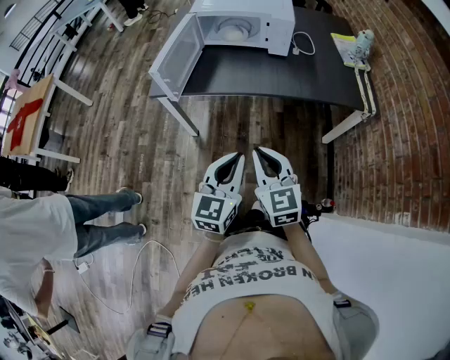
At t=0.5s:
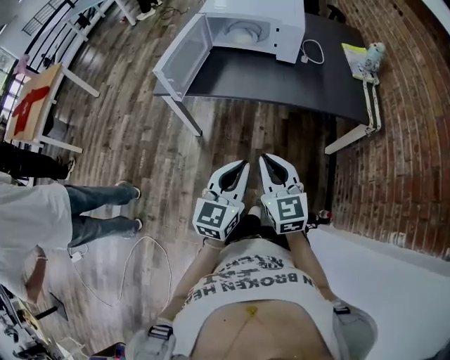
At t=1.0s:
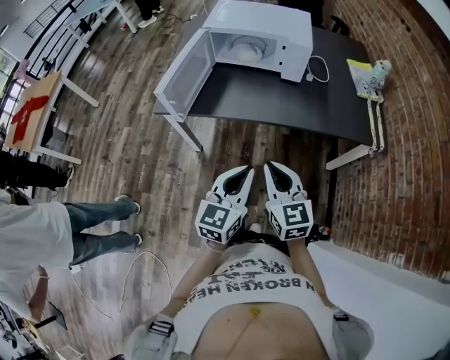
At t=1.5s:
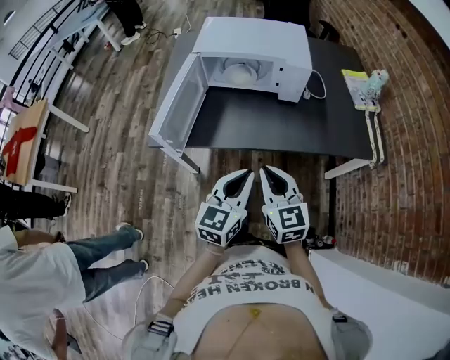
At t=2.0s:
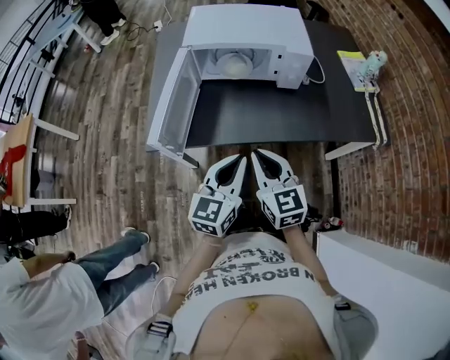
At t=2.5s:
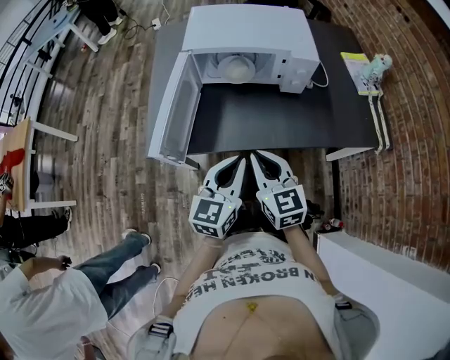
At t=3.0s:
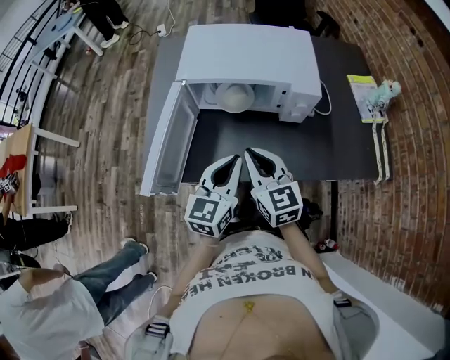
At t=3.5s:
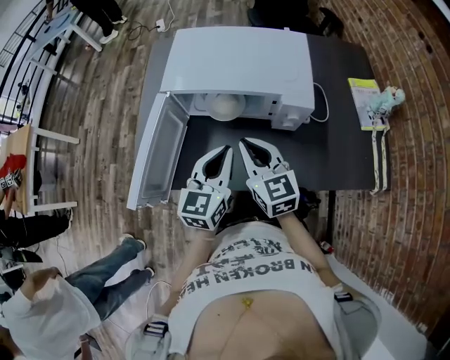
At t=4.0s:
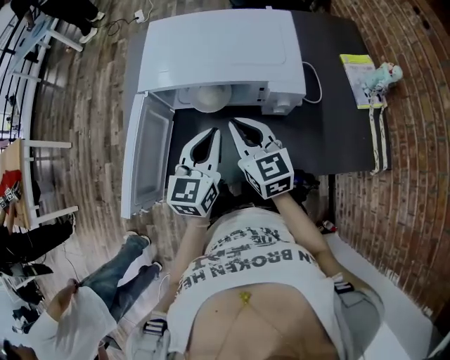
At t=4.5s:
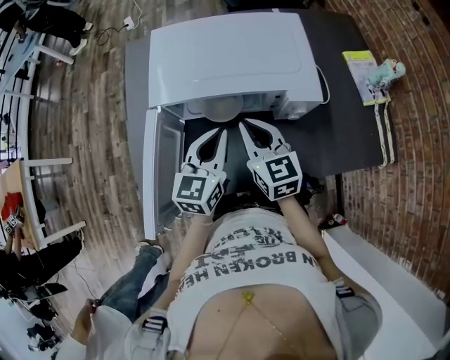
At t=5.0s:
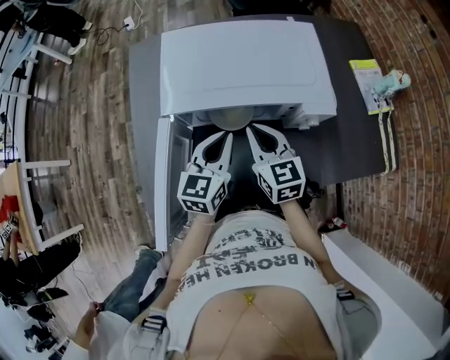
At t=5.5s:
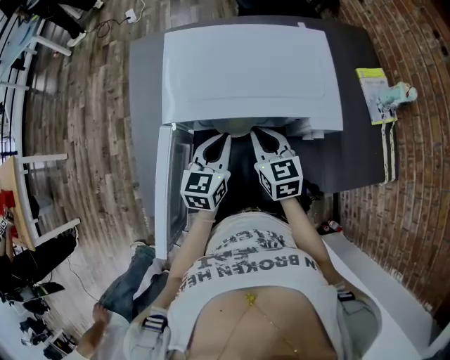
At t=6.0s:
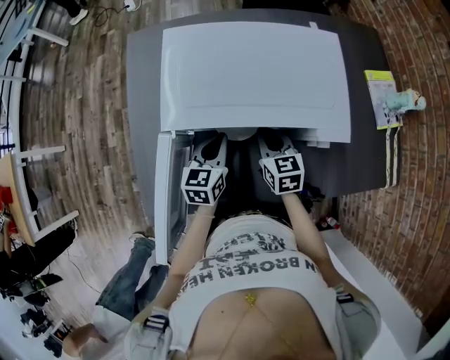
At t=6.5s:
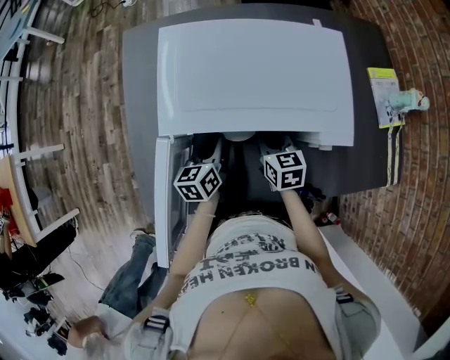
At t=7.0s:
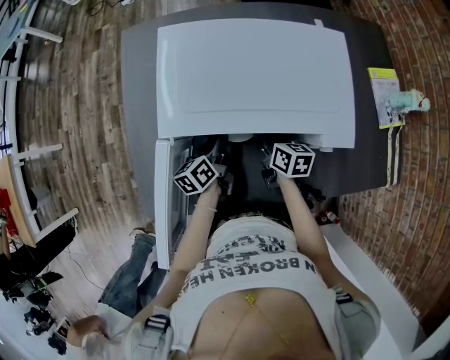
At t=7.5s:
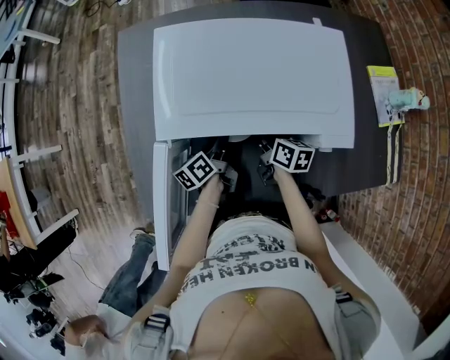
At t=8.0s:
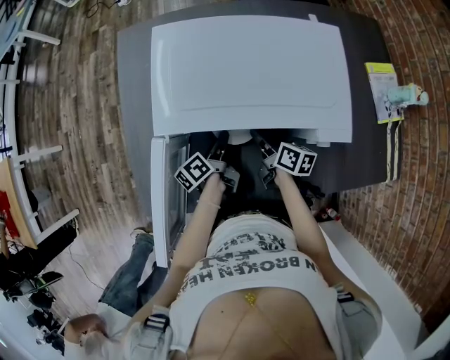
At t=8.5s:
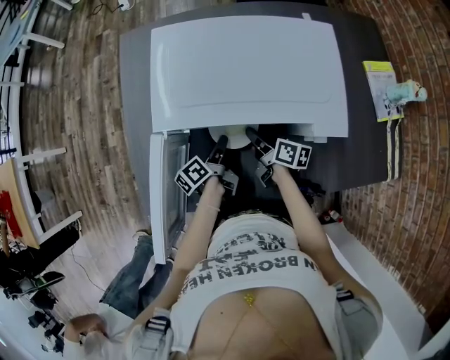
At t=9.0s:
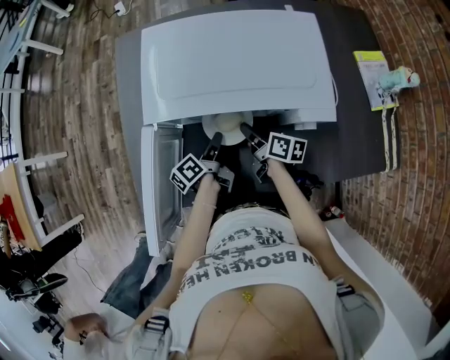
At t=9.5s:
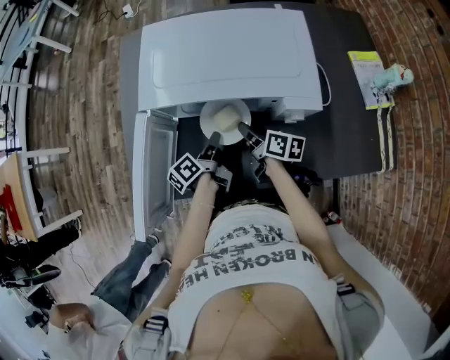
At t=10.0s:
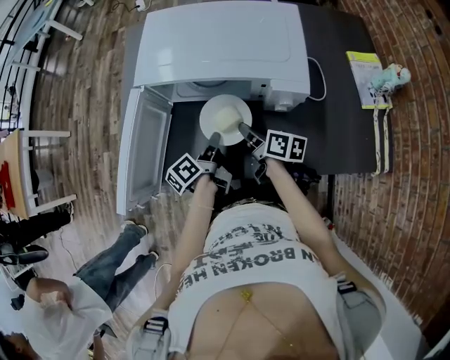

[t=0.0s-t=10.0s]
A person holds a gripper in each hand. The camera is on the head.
t=0.0s to t=2.0s: The grippers both shift forward by about 25 cm.
t=2.0s to t=4.0s: The two grippers go roughly 30 cm forward.
t=4.0s to t=6.0s: The right gripper shifts some 20 cm downward and forward, and rotates roughly 20 degrees. Meanwhile the left gripper shifts approximately 20 cm downward, forward and to the left.
t=6.0s to t=8.0s: Both grippers travel together downward, approximately 5 cm. The left gripper rotates around the line of its fingers by some 60 degrees, counterclockwise from behind, and opens, then closes again. Meanwhile the right gripper twists some 40 degrees clockwise, seen from behind, and opens up.
t=8.0s to t=10.0s: The grippers both shift backward and upward by some 15 cm.

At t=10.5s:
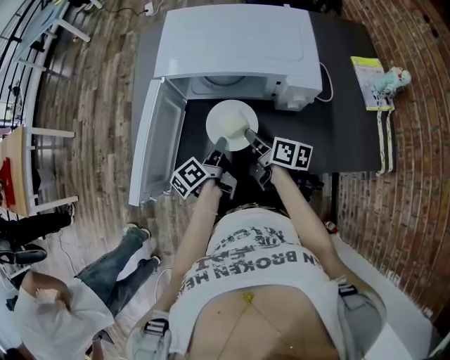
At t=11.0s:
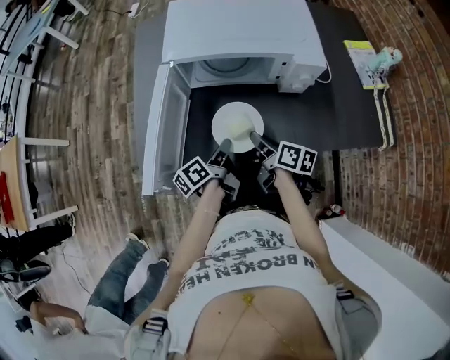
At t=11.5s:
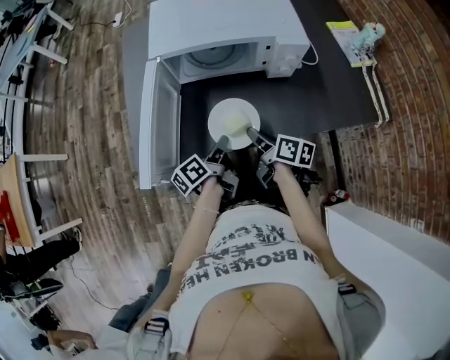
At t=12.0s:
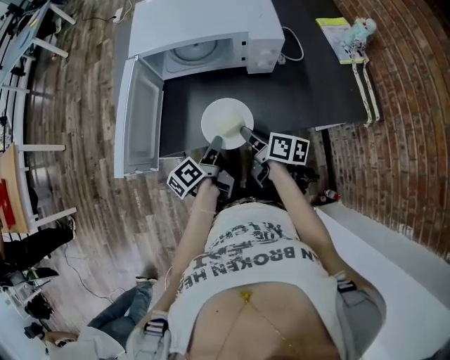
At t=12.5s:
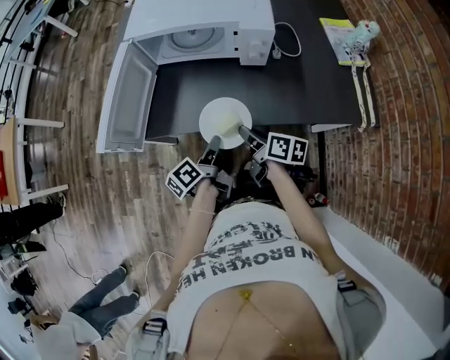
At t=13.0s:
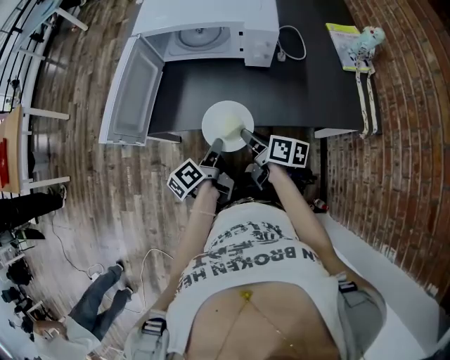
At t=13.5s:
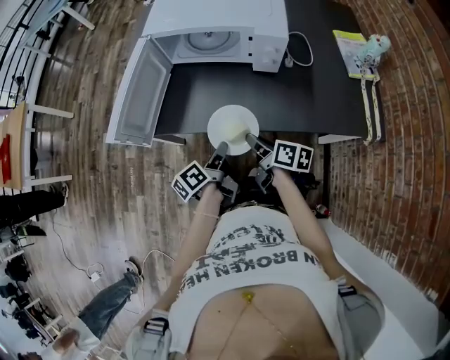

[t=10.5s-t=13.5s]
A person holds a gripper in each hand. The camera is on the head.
t=10.5s to t=12.0s: The two grippers go about 15 cm backward.
t=12.0s to t=13.5s: The grippers both shift backward by roughly 5 cm.

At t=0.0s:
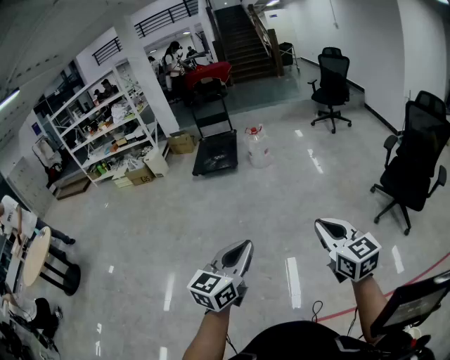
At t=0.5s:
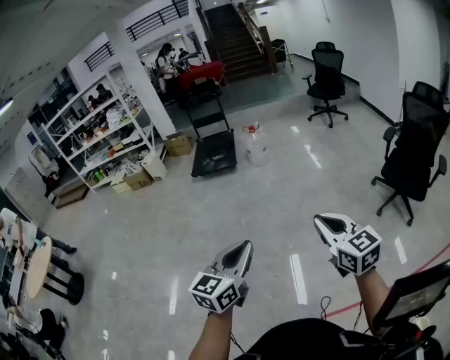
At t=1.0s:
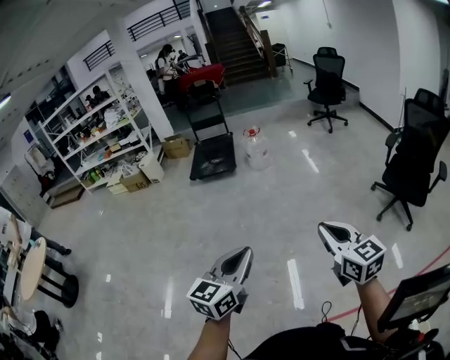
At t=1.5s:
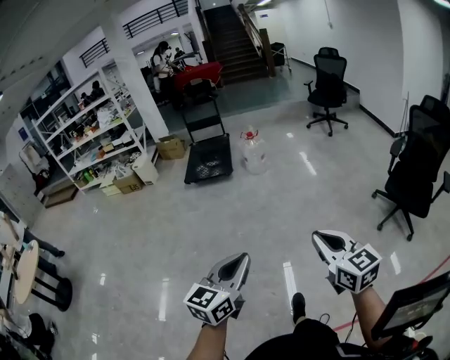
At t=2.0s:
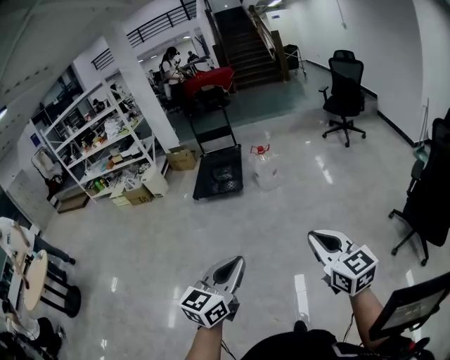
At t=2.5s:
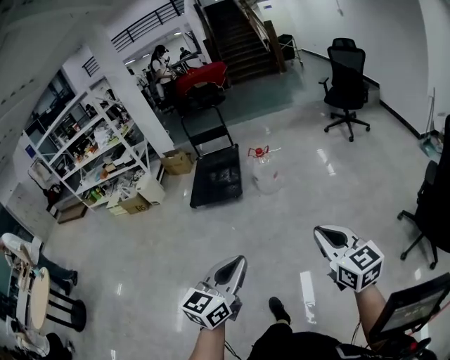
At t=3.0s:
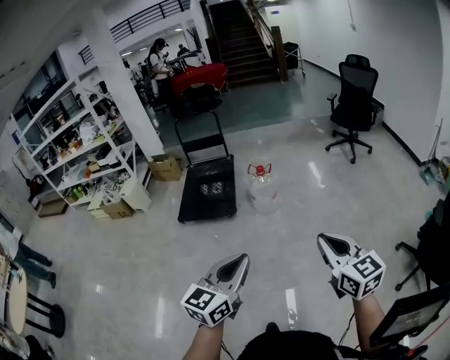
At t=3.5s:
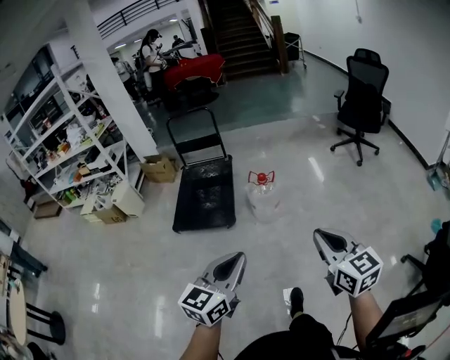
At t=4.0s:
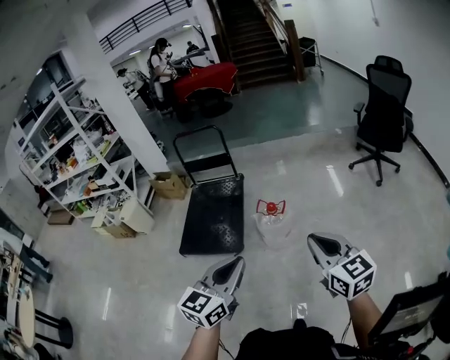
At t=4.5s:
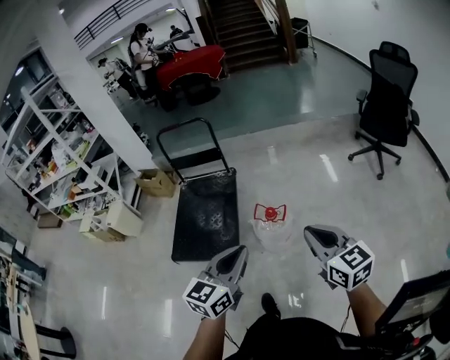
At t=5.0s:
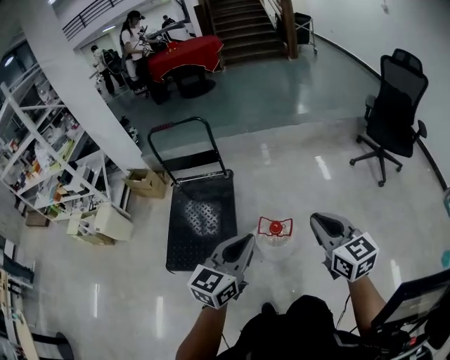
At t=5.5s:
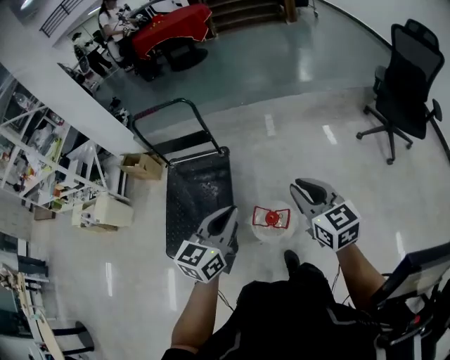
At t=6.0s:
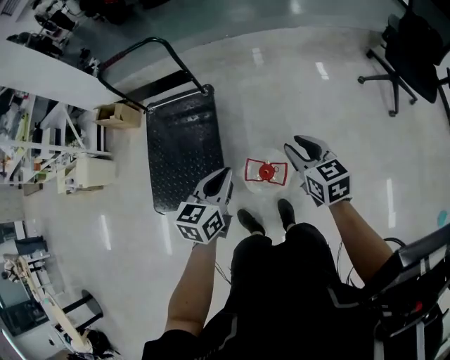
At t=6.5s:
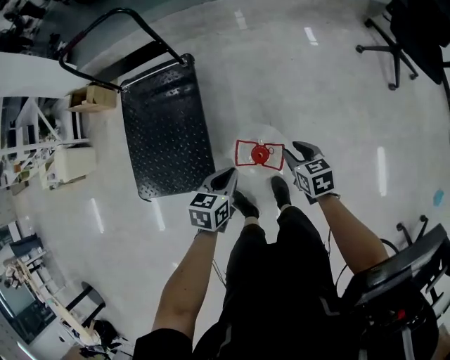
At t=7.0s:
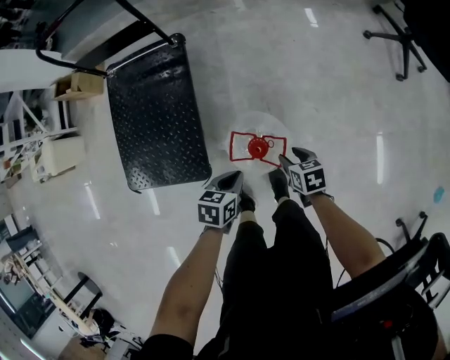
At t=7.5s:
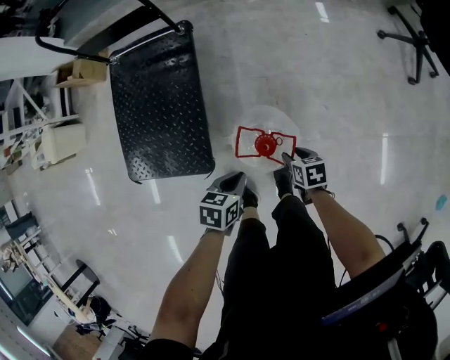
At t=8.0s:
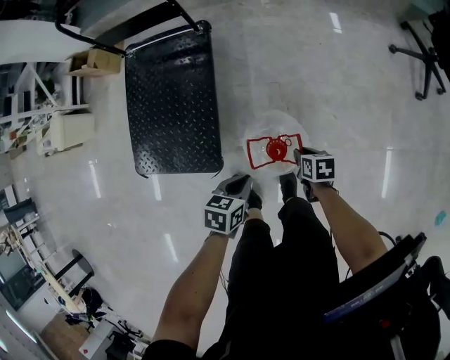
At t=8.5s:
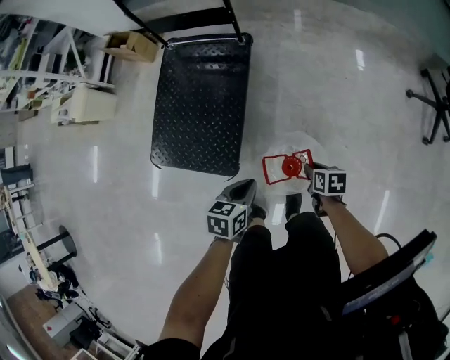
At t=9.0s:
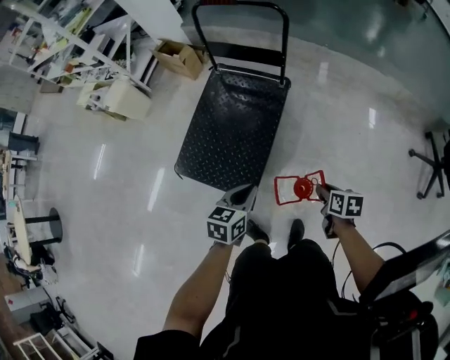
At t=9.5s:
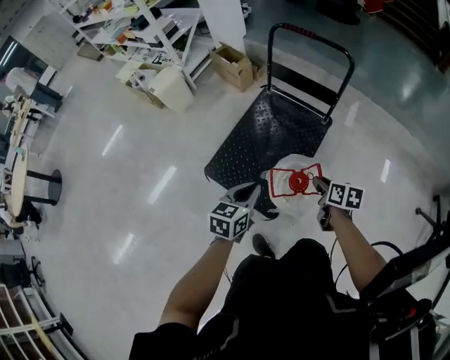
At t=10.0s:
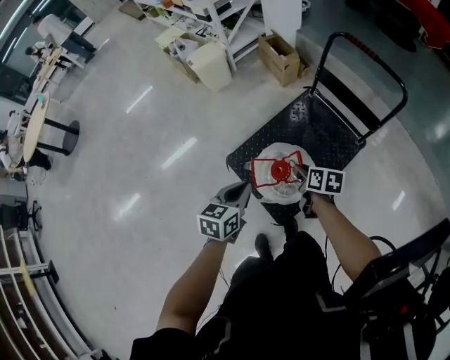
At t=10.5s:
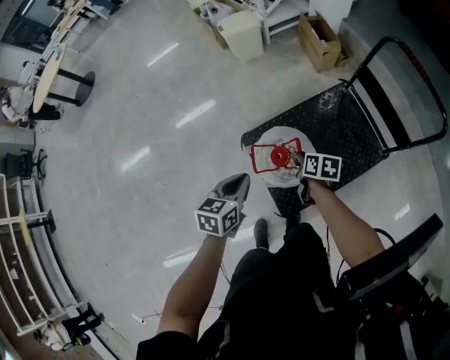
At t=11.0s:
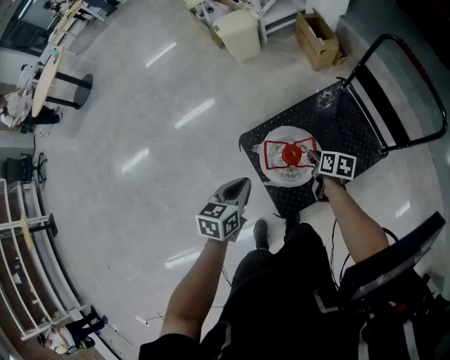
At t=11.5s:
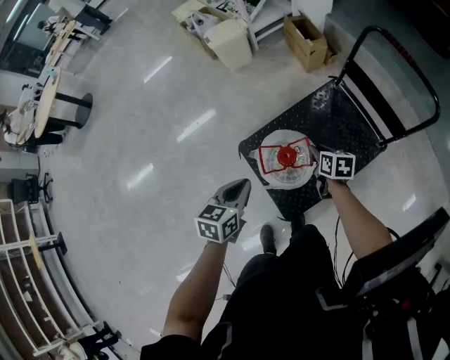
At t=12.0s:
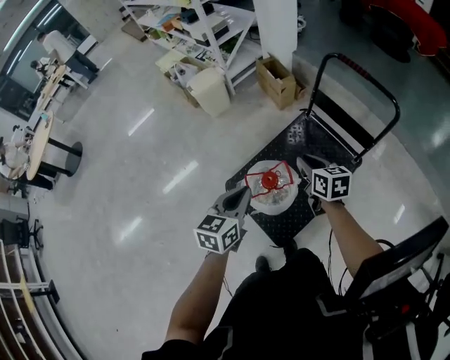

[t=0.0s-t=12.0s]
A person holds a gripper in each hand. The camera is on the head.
t=0.0s to t=2.0s: The grippers both shift forward by roughly 30 cm.
t=2.0s to t=4.0s: The pair of grippers is taken forward, approximately 80 cm.
t=4.0s to t=6.0s: The two grippers travel together, forward, some 60 cm. The left gripper rotates some 30 degrees, while the right gripper changes its angle by some 20 degrees, and opens its fingers.
t=6.0s to t=8.0s: The grippers both shift downward by roughly 35 cm. The left gripper rotates some 30 degrees. The right gripper points its fingers roughly 30 degrees further downward.
t=8.0s to t=10.0s: The pair of grippers is taken roughly 50 cm. The right gripper turns by about 40 degrees. The left gripper changes its angle by approximately 60 degrees.
t=10.0s to t=12.0s: Both grippers travel together upward and forward, roughly 10 cm. The right gripper rotates about 20 degrees.

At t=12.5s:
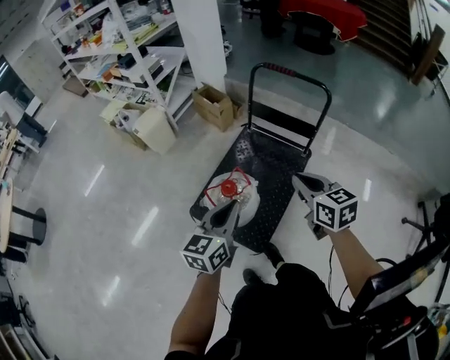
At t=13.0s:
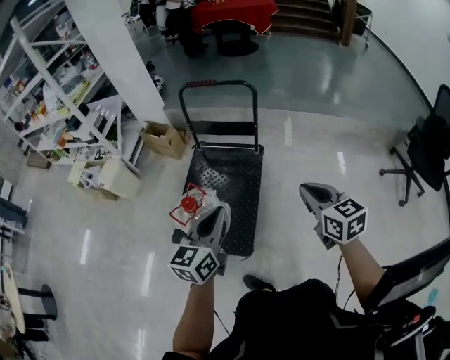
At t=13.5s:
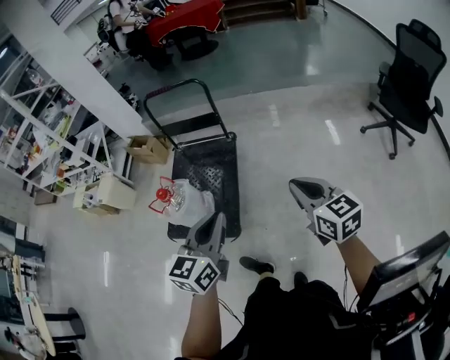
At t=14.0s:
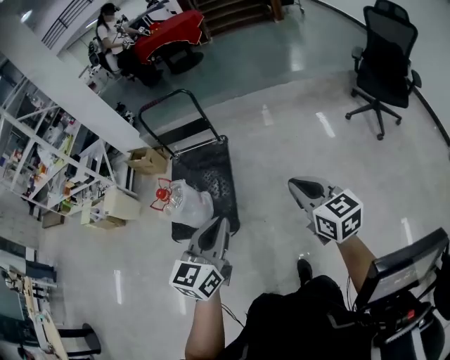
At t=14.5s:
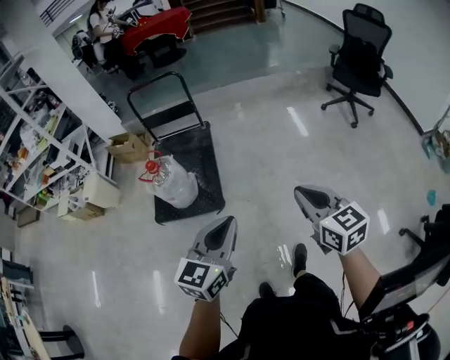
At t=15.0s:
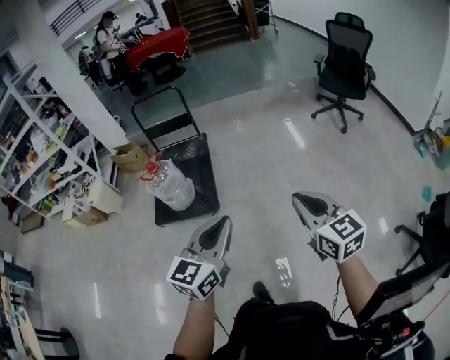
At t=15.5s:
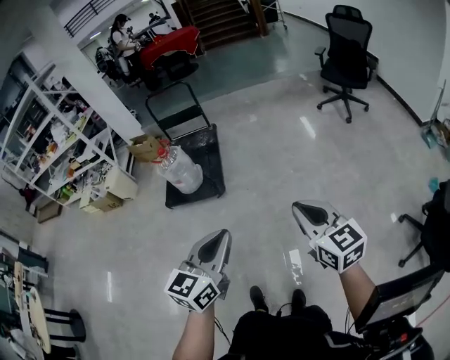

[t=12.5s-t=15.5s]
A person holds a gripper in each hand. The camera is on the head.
t=12.5s to t=14.0s: The pair of grippers is taken approximately 60 cm. The right gripper rotates approximately 30 degrees. The left gripper turns by some 30 degrees.
t=14.0s to t=15.5s: Both grippers are carried backward, some 50 cm.
